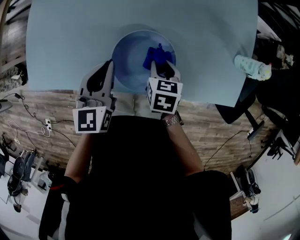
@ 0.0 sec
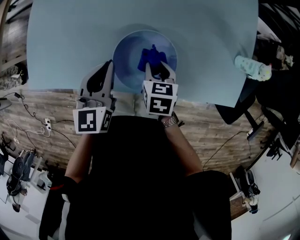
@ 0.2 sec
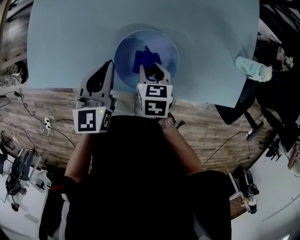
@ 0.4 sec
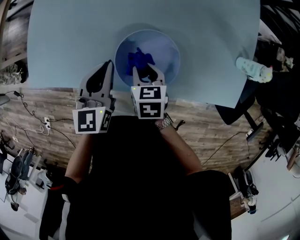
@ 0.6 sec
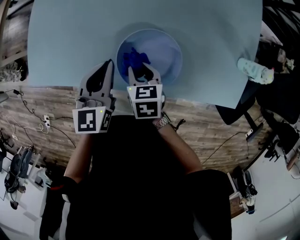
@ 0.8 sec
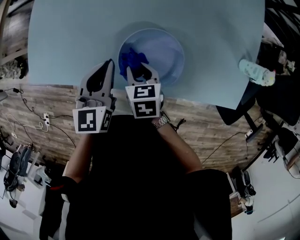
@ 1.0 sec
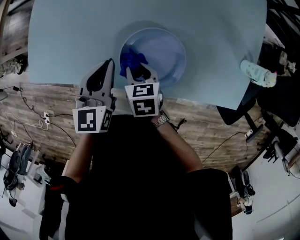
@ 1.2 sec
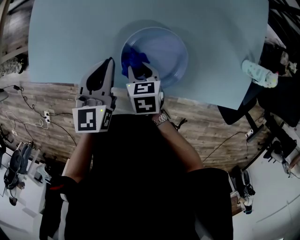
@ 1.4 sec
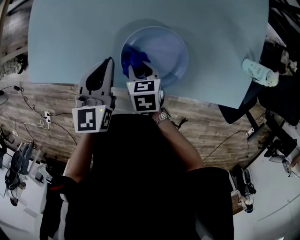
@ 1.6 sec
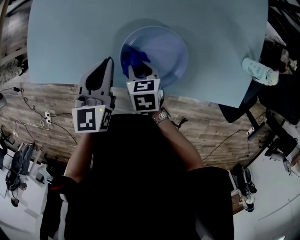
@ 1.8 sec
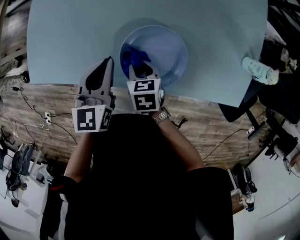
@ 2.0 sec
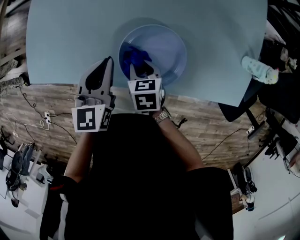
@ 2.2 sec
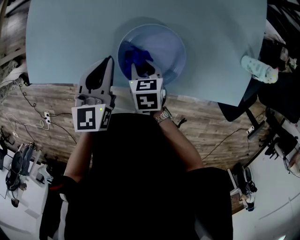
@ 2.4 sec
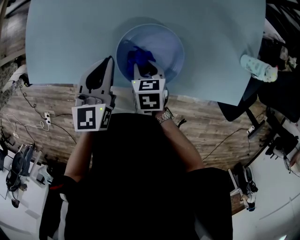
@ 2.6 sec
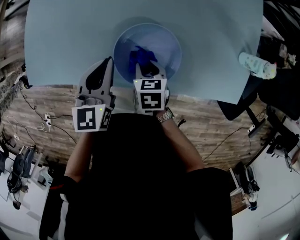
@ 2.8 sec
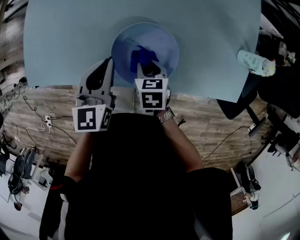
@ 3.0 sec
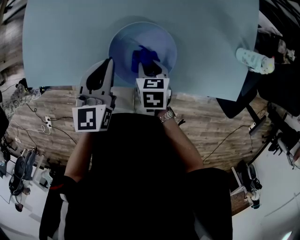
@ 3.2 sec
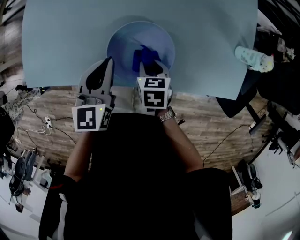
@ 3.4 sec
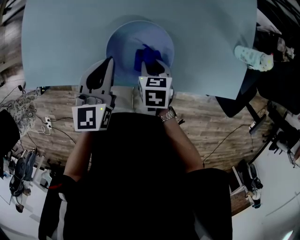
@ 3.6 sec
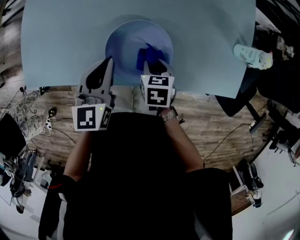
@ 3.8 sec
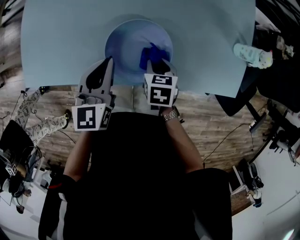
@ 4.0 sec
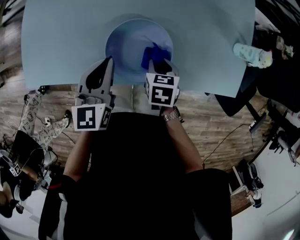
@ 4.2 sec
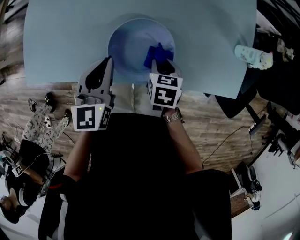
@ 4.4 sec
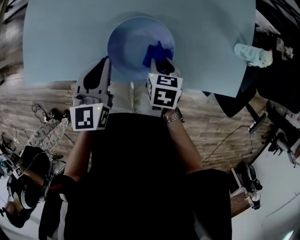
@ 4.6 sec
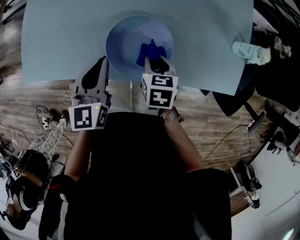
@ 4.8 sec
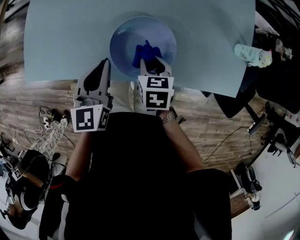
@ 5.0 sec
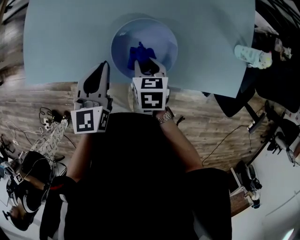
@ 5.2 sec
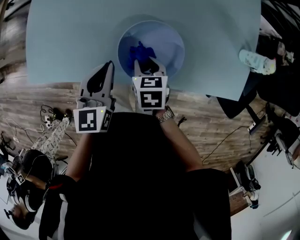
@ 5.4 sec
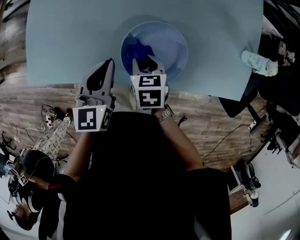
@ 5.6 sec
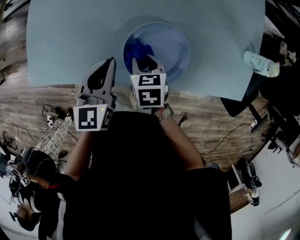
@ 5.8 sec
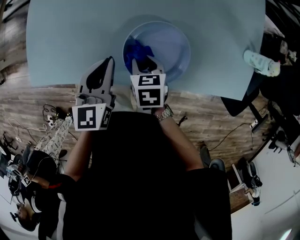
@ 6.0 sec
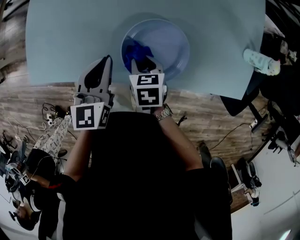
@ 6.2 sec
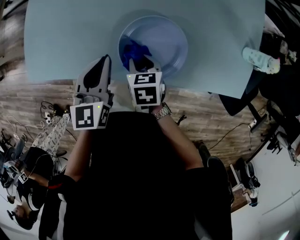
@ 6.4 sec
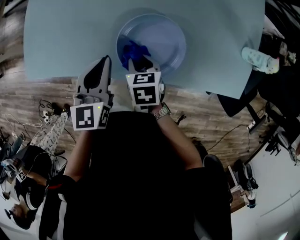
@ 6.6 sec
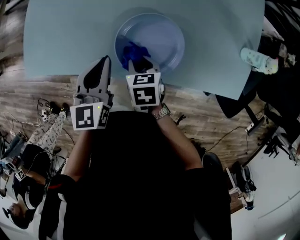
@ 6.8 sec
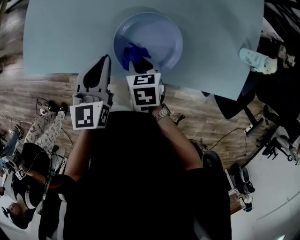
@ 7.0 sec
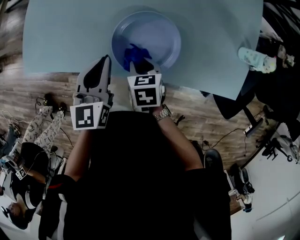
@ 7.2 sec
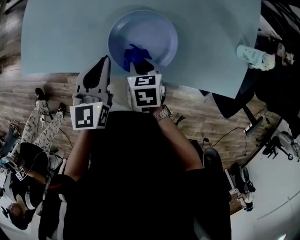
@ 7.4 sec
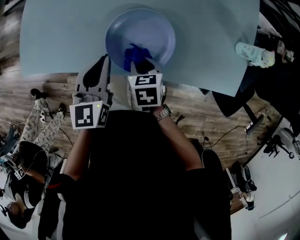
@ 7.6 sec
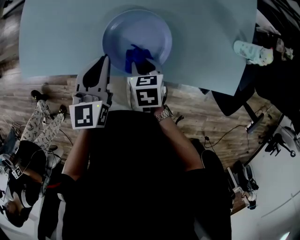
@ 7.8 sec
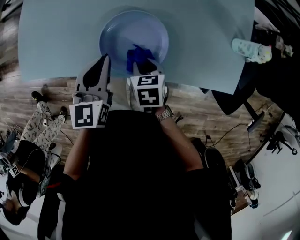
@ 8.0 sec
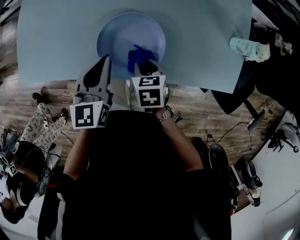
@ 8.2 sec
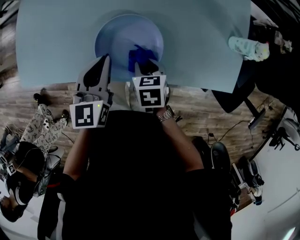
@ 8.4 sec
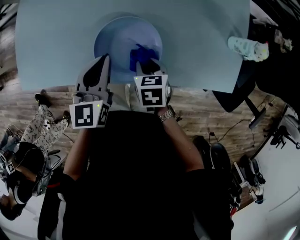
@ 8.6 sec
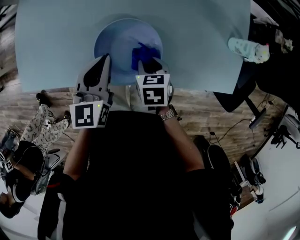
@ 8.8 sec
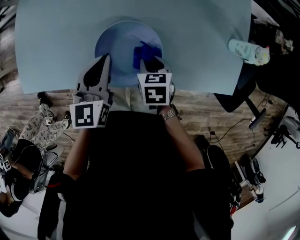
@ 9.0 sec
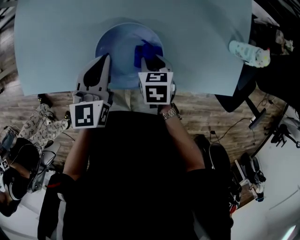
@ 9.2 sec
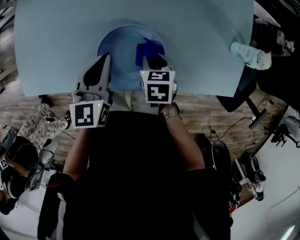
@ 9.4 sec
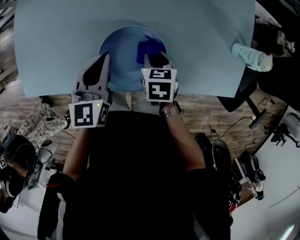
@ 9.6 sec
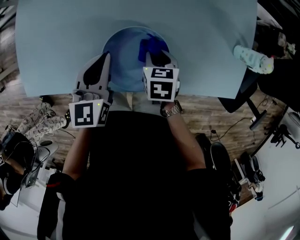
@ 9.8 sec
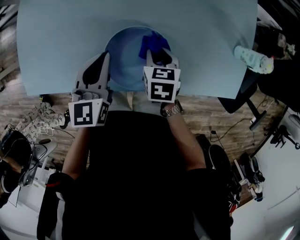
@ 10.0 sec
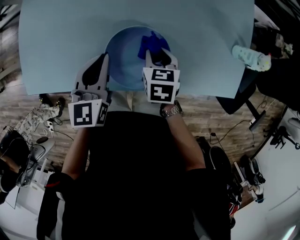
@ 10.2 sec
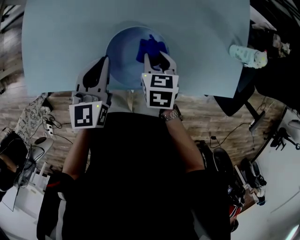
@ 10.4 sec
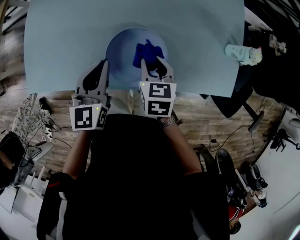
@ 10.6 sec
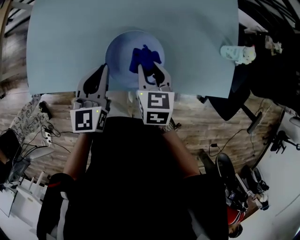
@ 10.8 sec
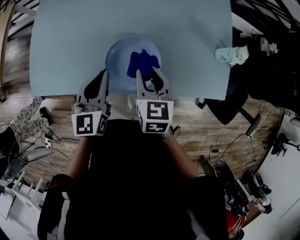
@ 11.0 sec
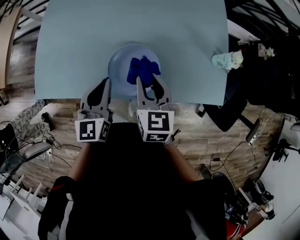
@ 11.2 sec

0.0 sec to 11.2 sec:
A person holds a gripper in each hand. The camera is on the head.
0.0 sec to 1.6 sec: The right gripper travels to the left by roughly 15 cm.
1.6 sec to 3.2 sec: The right gripper heads to the right, covering approximately 10 cm.
3.2 sec to 4.8 sec: The grippers stay close to where they were, moving slightly.
4.8 sec to 6.4 sec: The right gripper shifts about 10 cm to the left.
6.4 sec to 8.0 sec: The two grippers go approximately 5 cm to the right.
8.0 sec to 9.6 sec: The two grippers go approximately 10 cm forward.
9.6 sec to 11.2 sec: The right gripper shifts roughly 20 cm upward, and angles its fingers upward, by about 40 degrees. The left gripper goes some 10 cm backward and upward.

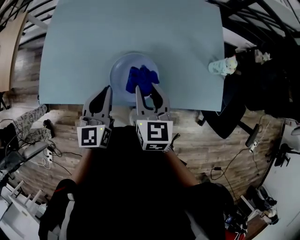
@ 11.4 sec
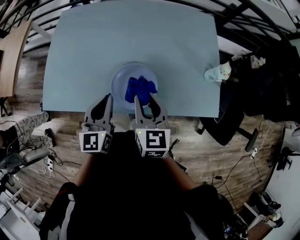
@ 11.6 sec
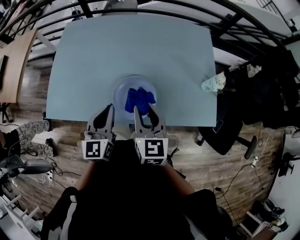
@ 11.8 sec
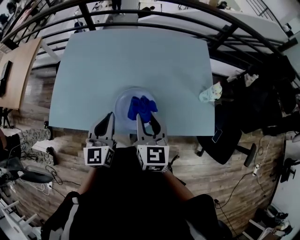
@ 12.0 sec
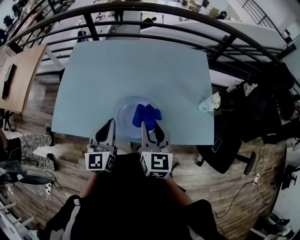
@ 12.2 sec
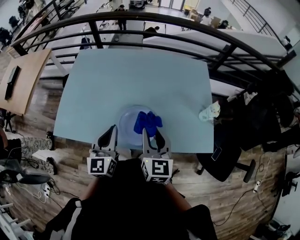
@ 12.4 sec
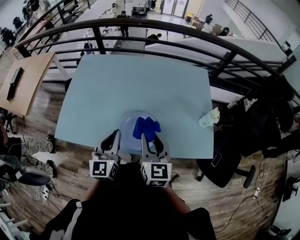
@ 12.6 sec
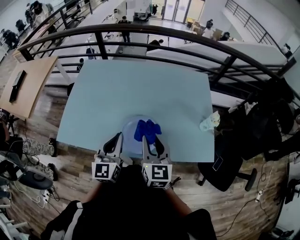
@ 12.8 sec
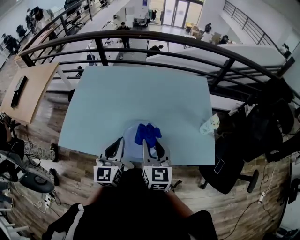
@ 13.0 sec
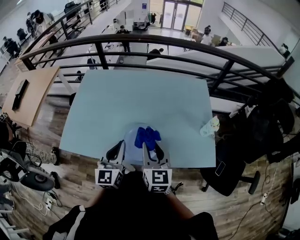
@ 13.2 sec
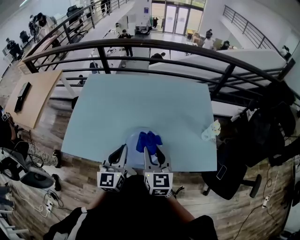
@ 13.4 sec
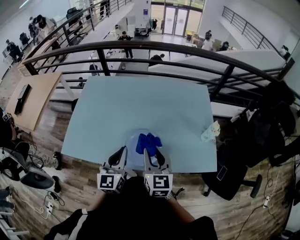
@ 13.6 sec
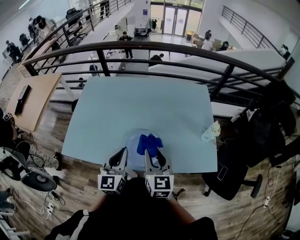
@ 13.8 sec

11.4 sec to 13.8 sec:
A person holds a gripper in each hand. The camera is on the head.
11.4 sec to 12.6 sec: Both grippers travel together upward, some 5 cm.
12.6 sec to 13.8 sec: There are only small adjustments of the grippers.

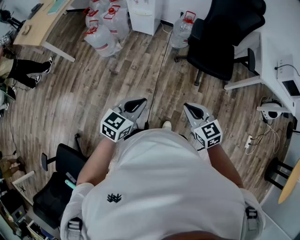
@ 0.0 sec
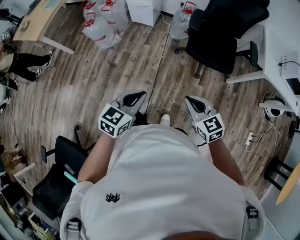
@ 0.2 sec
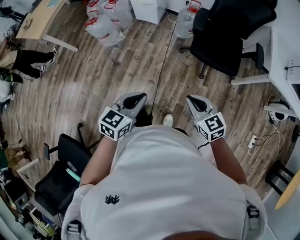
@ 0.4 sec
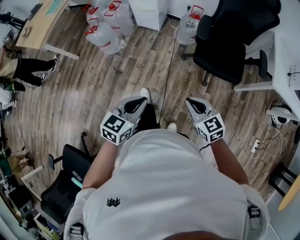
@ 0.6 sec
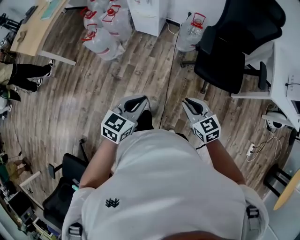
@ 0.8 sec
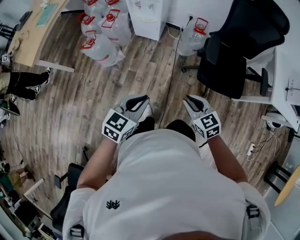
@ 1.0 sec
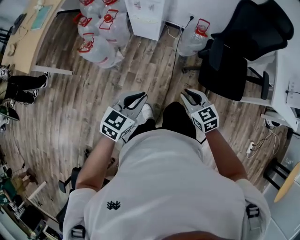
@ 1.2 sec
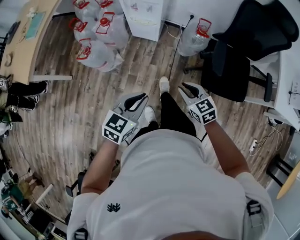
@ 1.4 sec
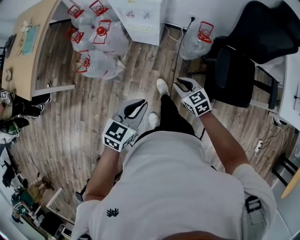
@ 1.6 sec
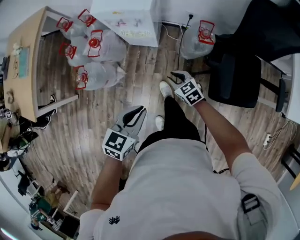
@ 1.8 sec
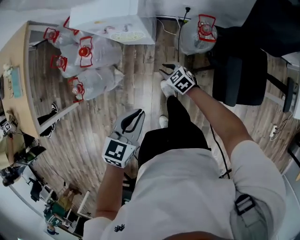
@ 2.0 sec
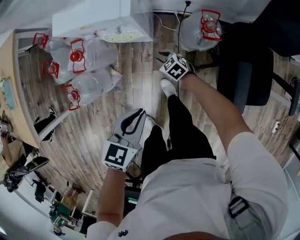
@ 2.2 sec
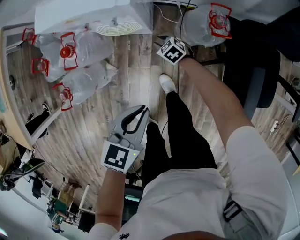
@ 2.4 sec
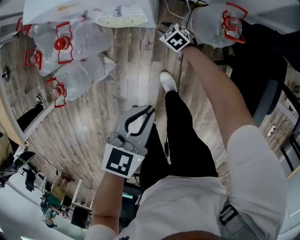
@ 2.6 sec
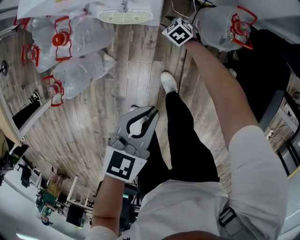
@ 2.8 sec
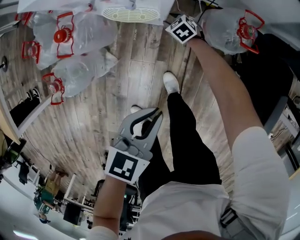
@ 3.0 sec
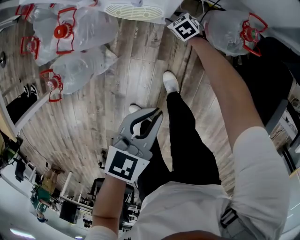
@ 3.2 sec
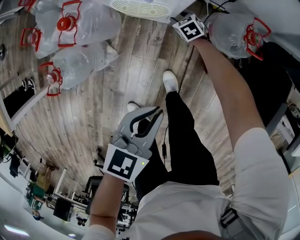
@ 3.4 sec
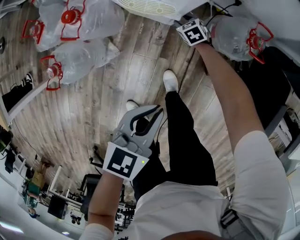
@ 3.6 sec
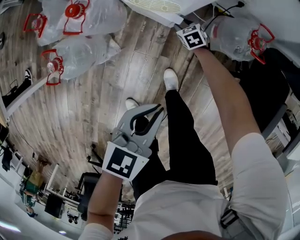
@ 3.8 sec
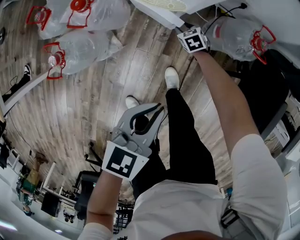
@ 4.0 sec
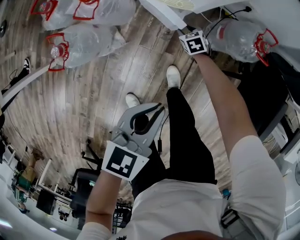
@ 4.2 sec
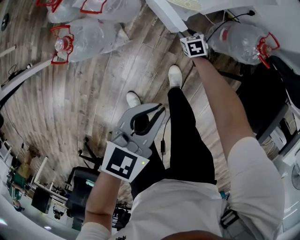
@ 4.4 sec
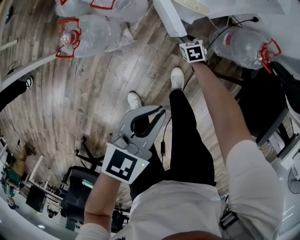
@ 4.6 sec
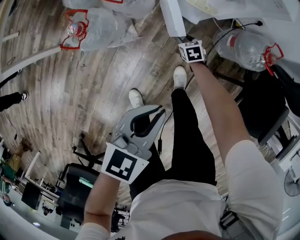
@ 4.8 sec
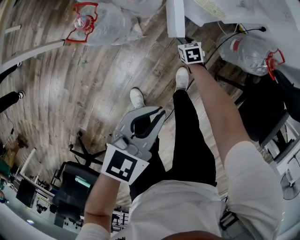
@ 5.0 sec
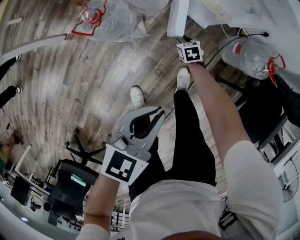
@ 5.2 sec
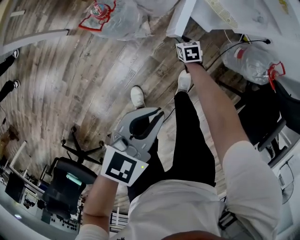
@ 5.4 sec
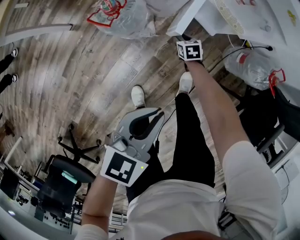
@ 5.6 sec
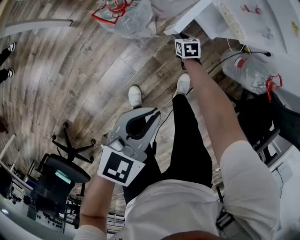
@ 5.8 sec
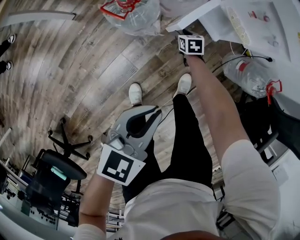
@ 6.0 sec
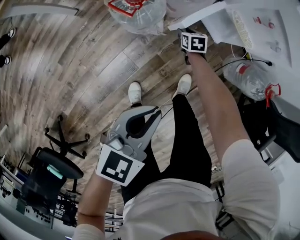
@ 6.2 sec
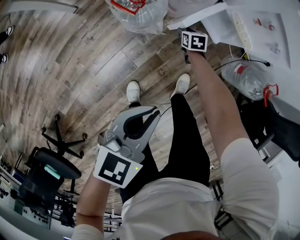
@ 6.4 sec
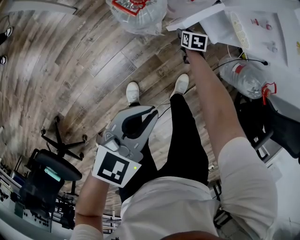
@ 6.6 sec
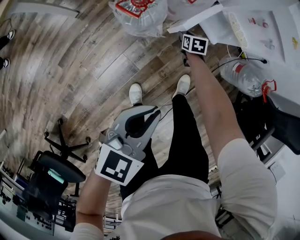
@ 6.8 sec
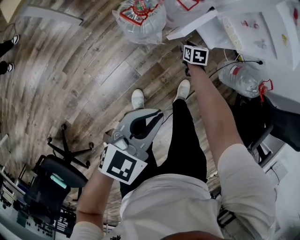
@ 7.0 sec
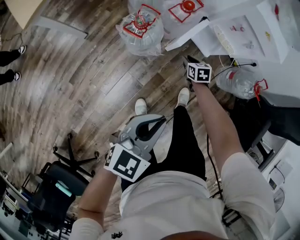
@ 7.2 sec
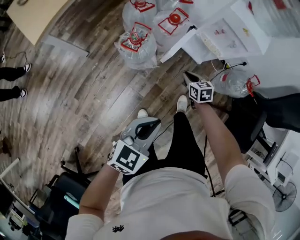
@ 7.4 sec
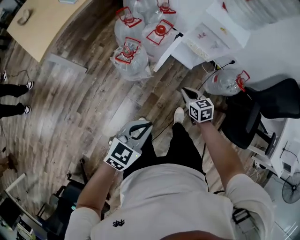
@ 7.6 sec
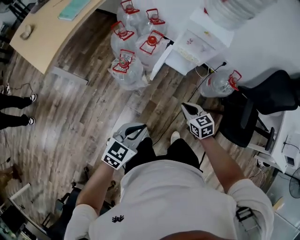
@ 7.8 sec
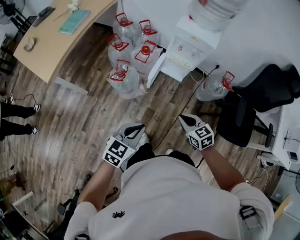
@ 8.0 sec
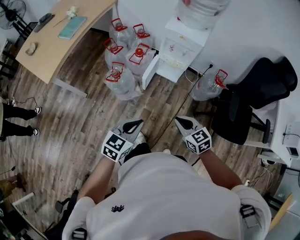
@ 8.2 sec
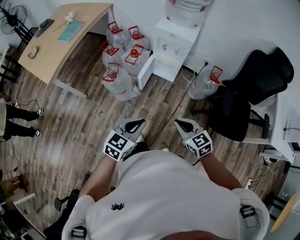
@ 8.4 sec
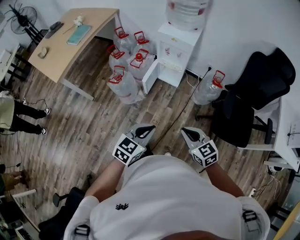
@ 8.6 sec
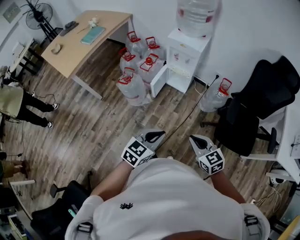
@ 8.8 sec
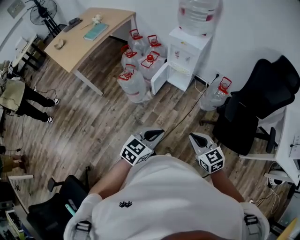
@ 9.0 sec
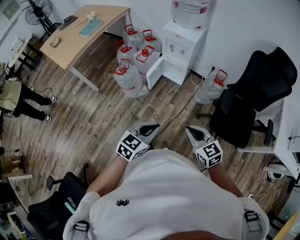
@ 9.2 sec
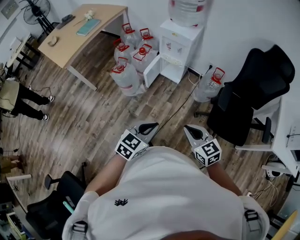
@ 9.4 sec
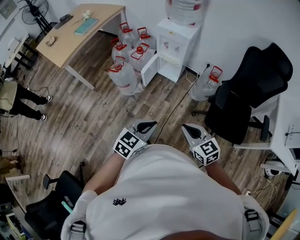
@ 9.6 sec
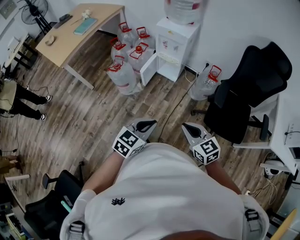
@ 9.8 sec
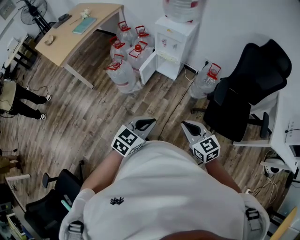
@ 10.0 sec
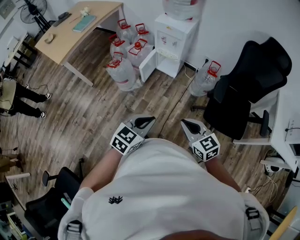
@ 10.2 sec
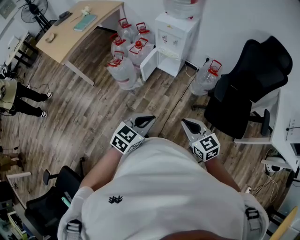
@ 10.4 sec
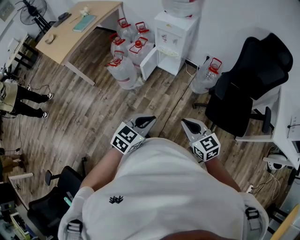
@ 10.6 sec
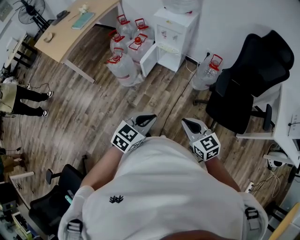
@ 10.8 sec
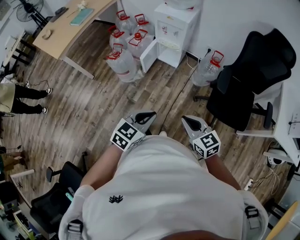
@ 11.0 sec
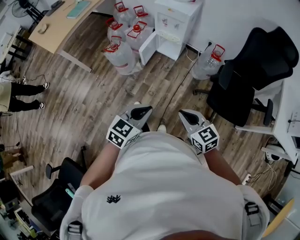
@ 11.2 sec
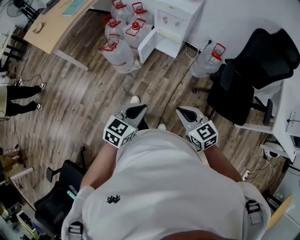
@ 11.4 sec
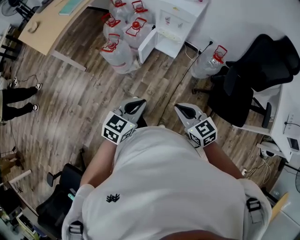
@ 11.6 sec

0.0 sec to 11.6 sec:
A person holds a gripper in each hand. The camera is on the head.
0.0 sec to 1.4 sec: Both grippers are carried forward, roughly 40 cm.
1.4 sec to 2.8 sec: The left gripper heads forward and downward, covering some 40 cm; the right gripper shifts some 70 cm forward and downward, and turns by about 20 degrees.
2.8 sec to 4.4 sec: The right gripper goes roughly 15 cm backward and to the left, while the left gripper heads to the left and backward, covering about 15 cm.
4.4 sec to 5.8 sec: The right gripper goes some 25 cm to the left. The left gripper heads to the left and backward, covering approximately 20 cm.
5.8 sec to 7.2 sec: The left gripper shifts approximately 15 cm upward, backward and to the left, while the right gripper travels upward and backward by some 15 cm.
7.2 sec to 8.8 sec: The right gripper is displaced upward, backward and to the right by roughly 70 cm, points its fingers some 30 degrees further upward, and closes its fingers, while the left gripper shifts some 35 cm to the right, backward and upward.
8.8 sec to 10.2 sec: Both grippers move backward, approximately 5 cm.
10.2 sec to 11.6 sec: The two grippers go some 15 cm to the left and forward.